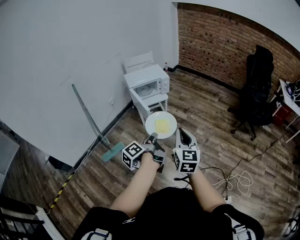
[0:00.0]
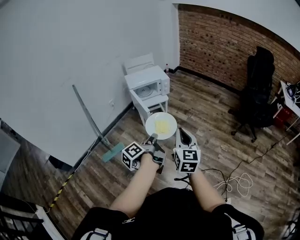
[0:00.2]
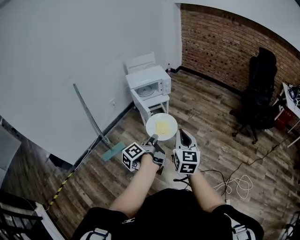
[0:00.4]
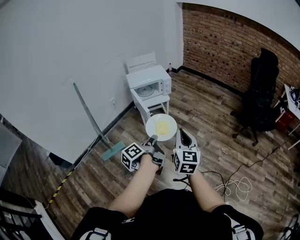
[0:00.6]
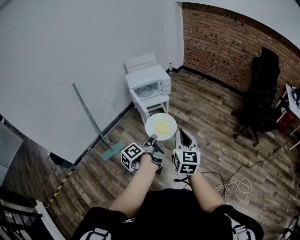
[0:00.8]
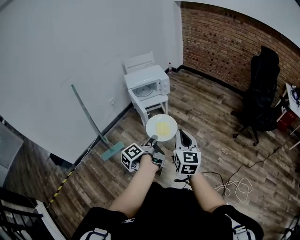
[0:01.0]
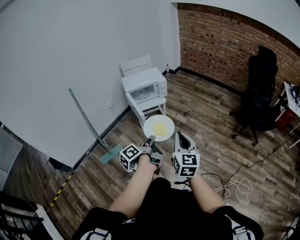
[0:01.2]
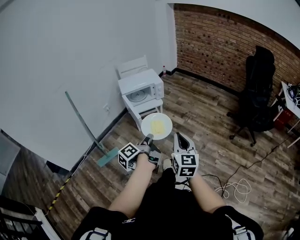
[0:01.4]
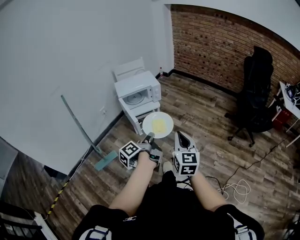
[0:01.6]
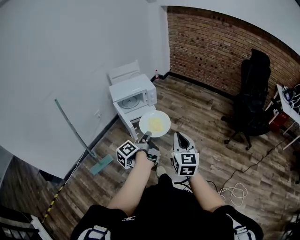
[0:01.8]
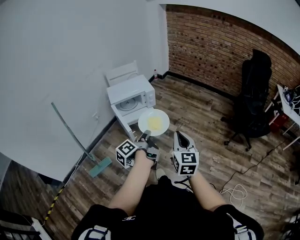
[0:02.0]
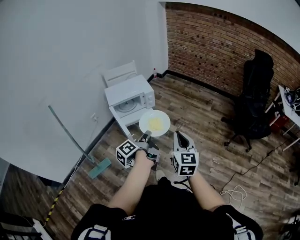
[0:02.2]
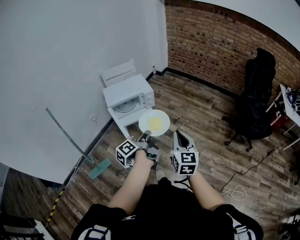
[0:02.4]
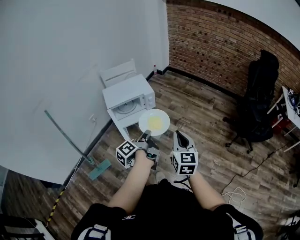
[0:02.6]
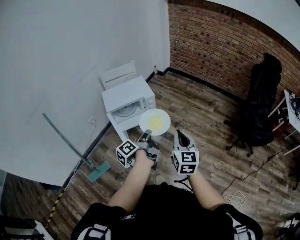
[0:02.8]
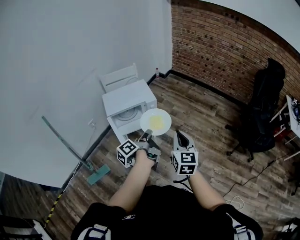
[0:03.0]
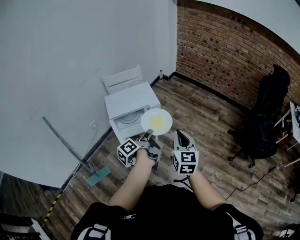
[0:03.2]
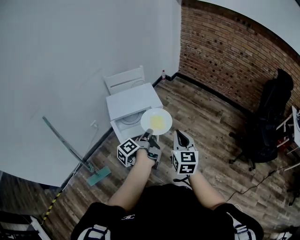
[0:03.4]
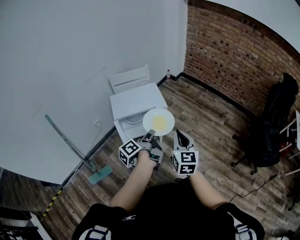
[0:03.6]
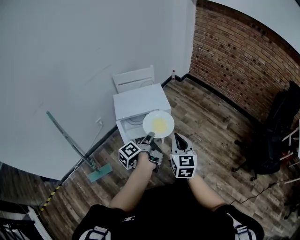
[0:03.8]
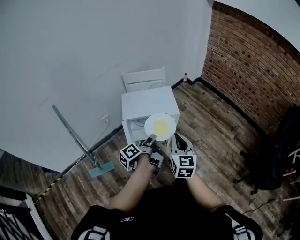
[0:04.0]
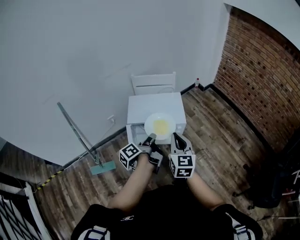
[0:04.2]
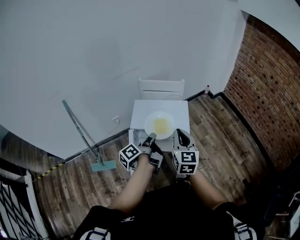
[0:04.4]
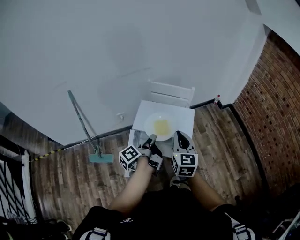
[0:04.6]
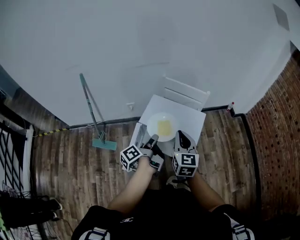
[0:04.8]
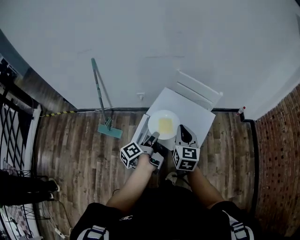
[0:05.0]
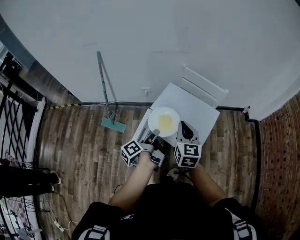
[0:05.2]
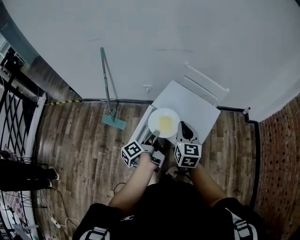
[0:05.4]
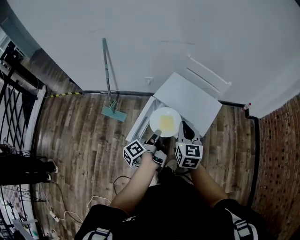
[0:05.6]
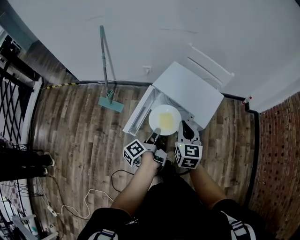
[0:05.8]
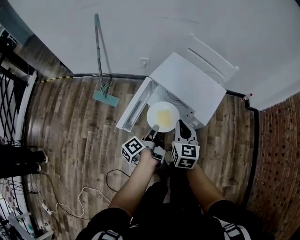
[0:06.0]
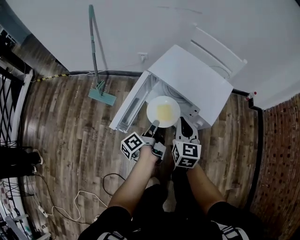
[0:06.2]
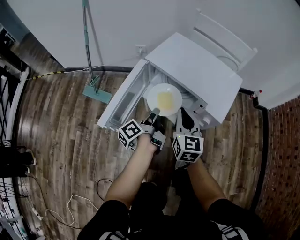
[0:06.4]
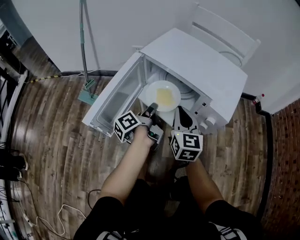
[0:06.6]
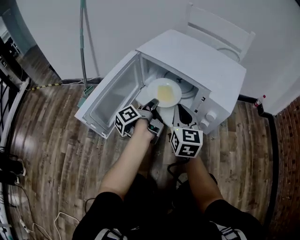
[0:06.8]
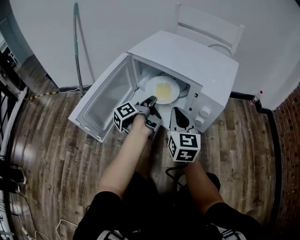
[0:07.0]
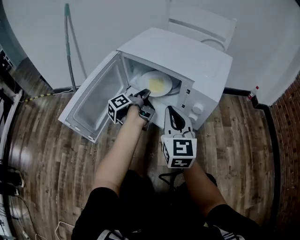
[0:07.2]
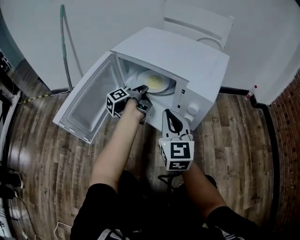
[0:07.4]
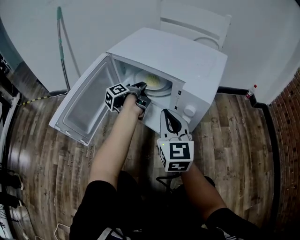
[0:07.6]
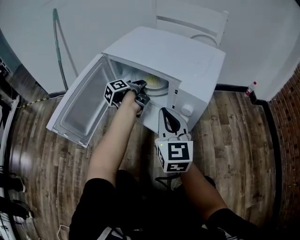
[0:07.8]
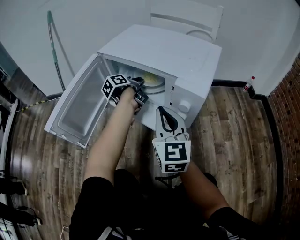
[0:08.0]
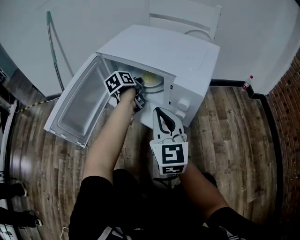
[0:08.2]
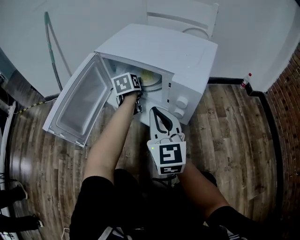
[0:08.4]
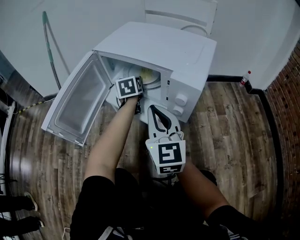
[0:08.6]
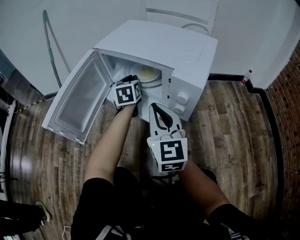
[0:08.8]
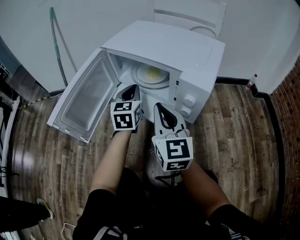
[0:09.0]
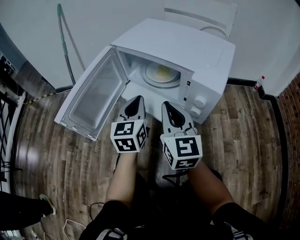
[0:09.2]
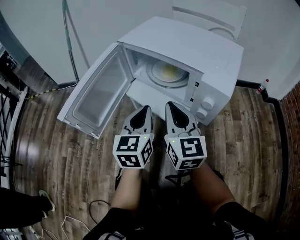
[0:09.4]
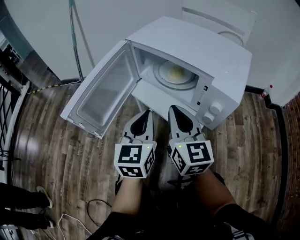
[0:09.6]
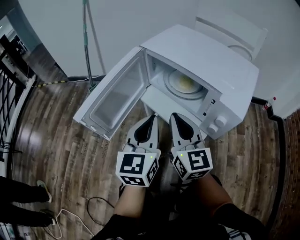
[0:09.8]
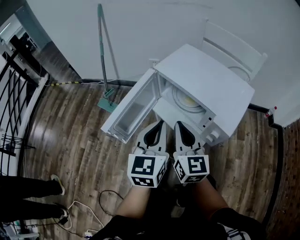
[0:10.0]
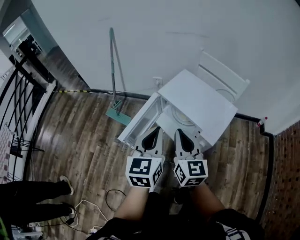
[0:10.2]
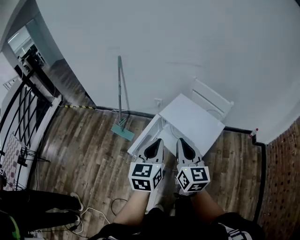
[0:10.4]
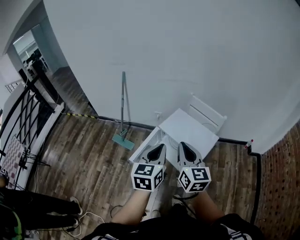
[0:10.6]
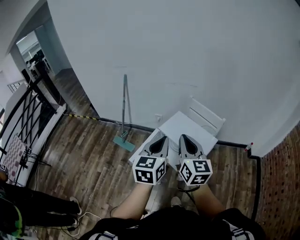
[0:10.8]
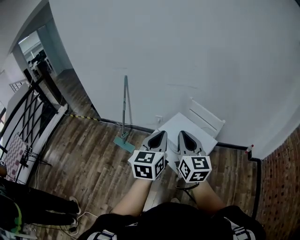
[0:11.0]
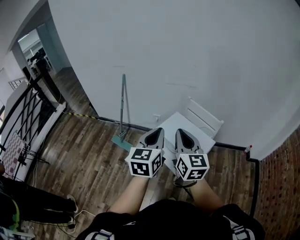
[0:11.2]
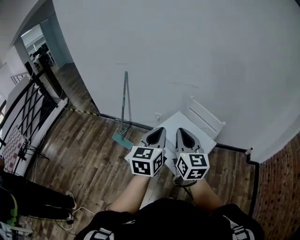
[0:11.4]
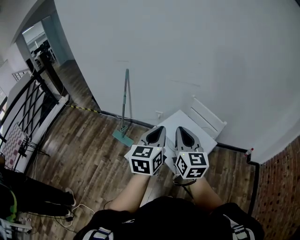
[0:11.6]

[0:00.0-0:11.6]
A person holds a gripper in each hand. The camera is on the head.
0:00.0 to 0:01.4: The right gripper shifts by approximately 10 cm.
0:01.4 to 0:02.8: The right gripper ends up about 30 cm from where it was.
0:02.8 to 0:04.4: The right gripper moves roughly 40 cm, and rotates approximately 30 degrees.
0:04.4 to 0:05.8: The right gripper is displaced downward by approximately 10 cm, and turns by approximately 30 degrees.
0:05.8 to 0:07.2: The right gripper moves downward, approximately 30 cm, and turns by some 20 degrees.
0:08.8 to 0:10.2: The right gripper shifts about 25 cm upward.
0:10.2 to 0:11.6: The right gripper goes approximately 25 cm upward.

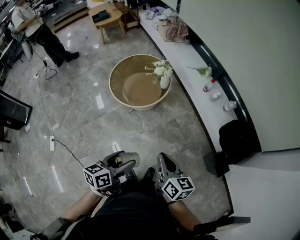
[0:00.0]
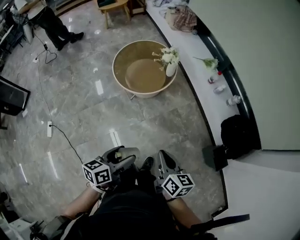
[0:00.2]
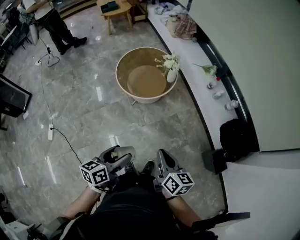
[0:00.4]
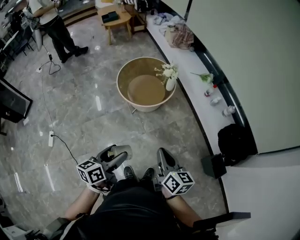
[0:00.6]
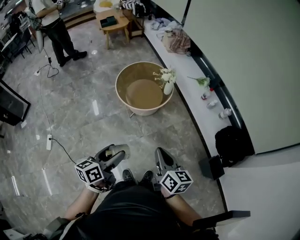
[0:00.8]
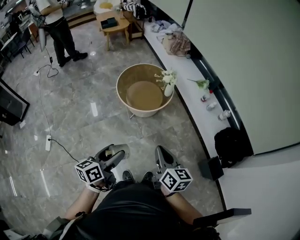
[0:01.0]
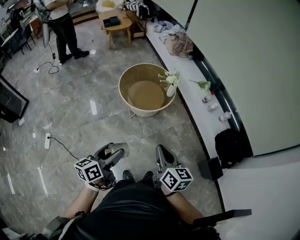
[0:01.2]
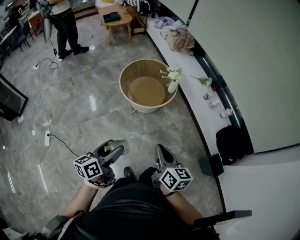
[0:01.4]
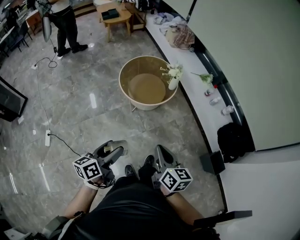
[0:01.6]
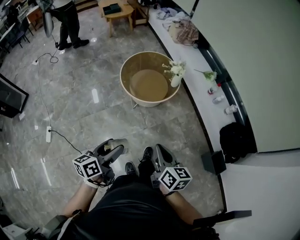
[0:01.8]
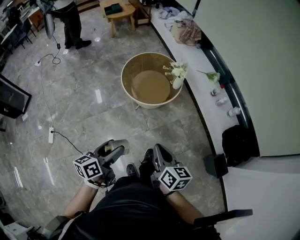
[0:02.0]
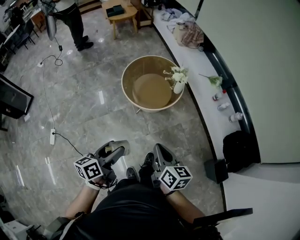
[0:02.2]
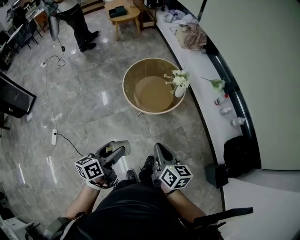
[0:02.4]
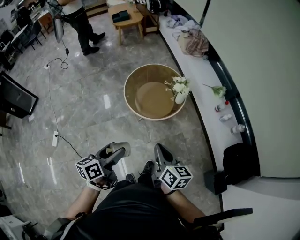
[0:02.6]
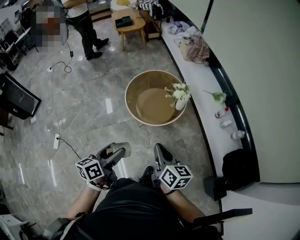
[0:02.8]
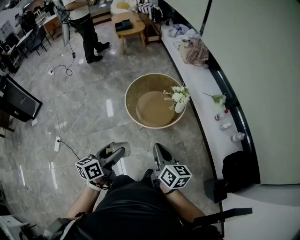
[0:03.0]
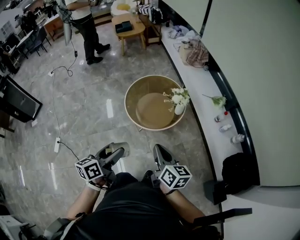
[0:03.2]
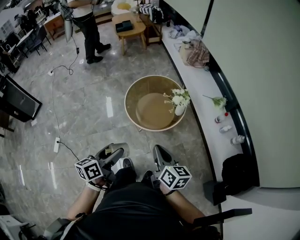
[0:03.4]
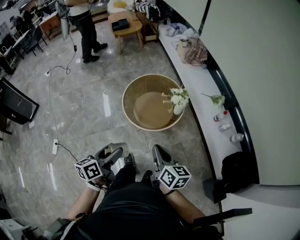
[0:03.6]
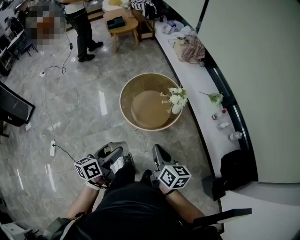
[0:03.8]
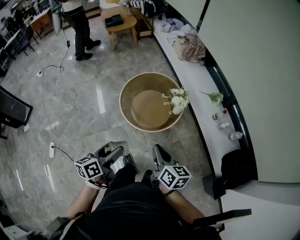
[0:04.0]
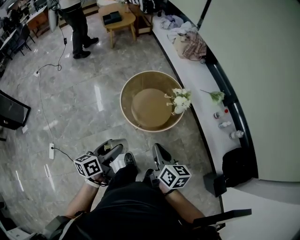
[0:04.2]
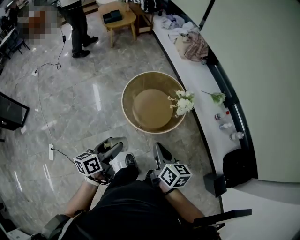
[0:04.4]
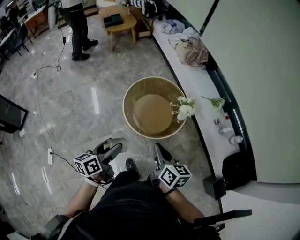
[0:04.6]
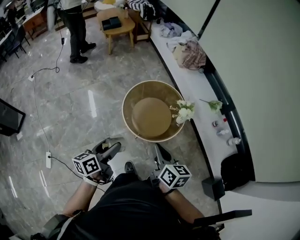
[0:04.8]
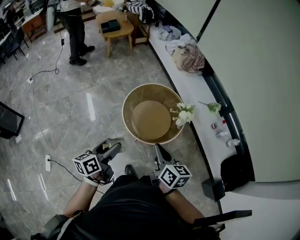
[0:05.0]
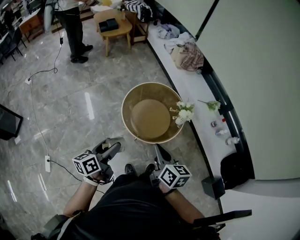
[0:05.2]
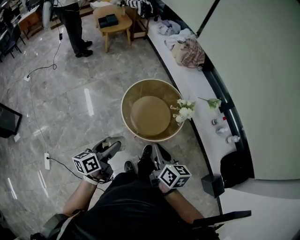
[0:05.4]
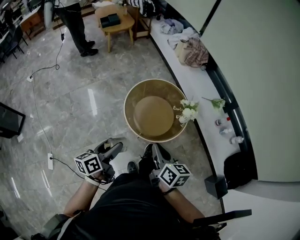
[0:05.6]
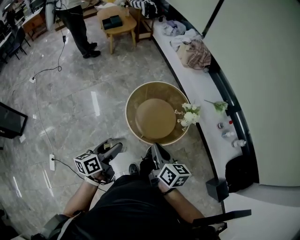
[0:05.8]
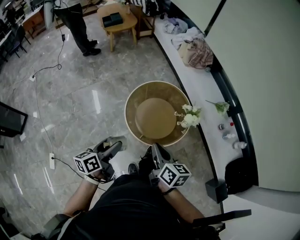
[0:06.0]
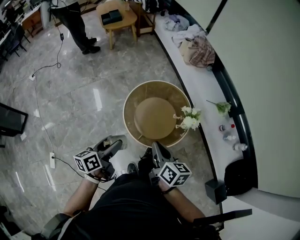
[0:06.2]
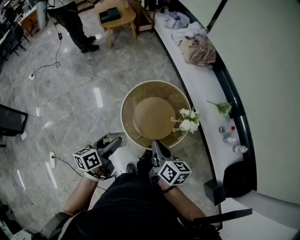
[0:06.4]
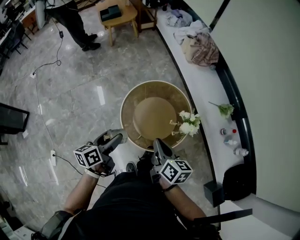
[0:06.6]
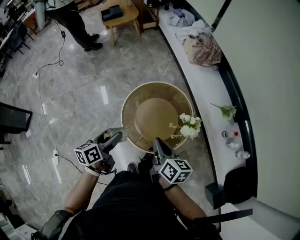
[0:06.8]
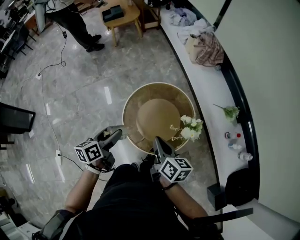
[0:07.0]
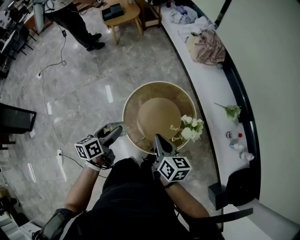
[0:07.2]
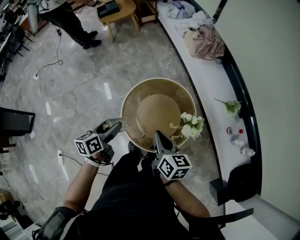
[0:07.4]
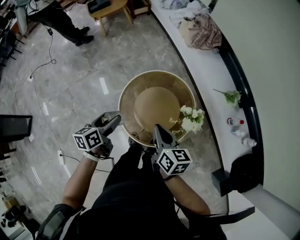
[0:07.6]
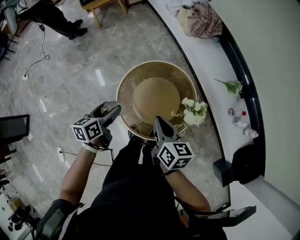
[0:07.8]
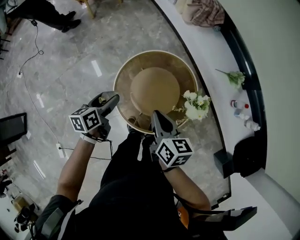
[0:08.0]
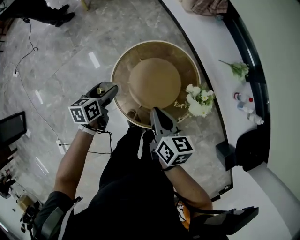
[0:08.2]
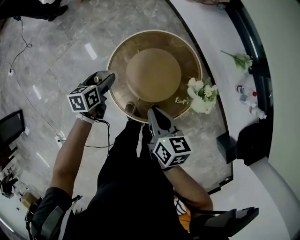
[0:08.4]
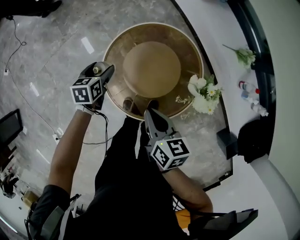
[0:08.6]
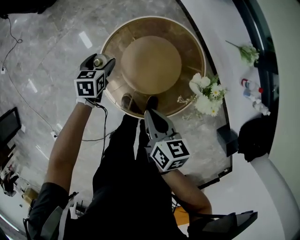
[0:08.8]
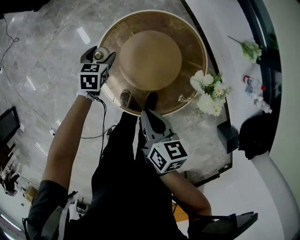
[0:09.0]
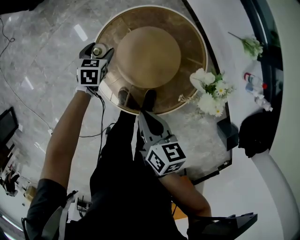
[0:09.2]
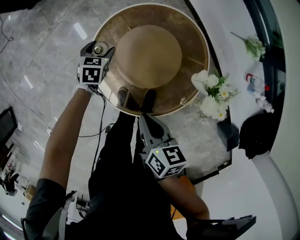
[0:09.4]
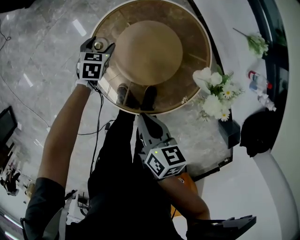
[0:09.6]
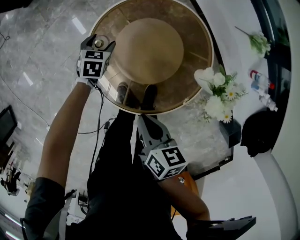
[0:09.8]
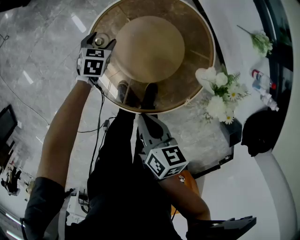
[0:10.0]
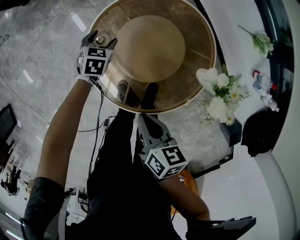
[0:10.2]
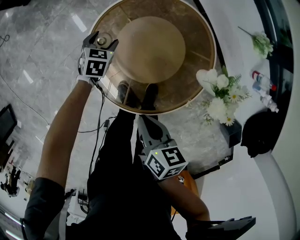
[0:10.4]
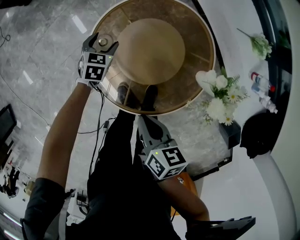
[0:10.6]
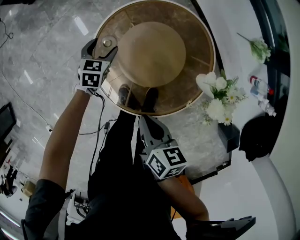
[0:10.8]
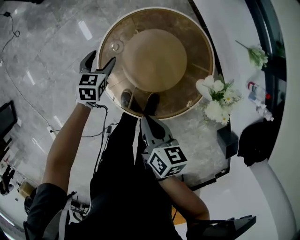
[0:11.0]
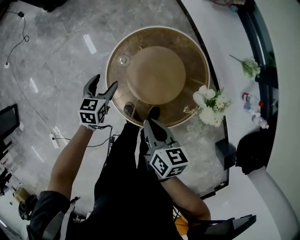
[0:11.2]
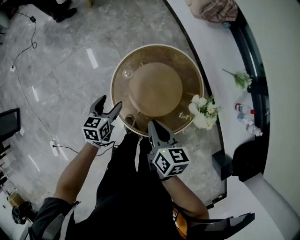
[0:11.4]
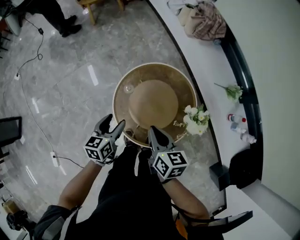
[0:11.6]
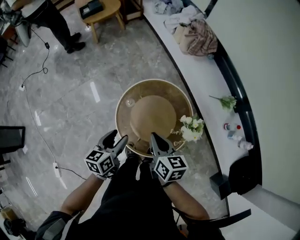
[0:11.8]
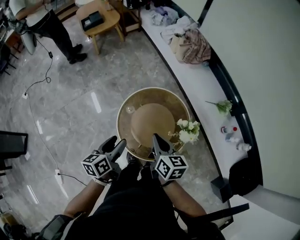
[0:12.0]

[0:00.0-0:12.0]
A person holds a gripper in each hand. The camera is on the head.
0:00.0 to 0:01.6: Both grippers travel together to the left, some 15 cm.
0:01.6 to 0:03.0: The right gripper travels forward by roughly 20 cm, while the left gripper heads forward and to the right, covering roughly 15 cm.
0:03.0 to 0:04.4: The two grippers go roughly 15 cm forward and to the left.
0:04.4 to 0:06.0: Both grippers move forward and to the left, approximately 15 cm.
0:06.0 to 0:07.6: Both grippers travel together forward, some 20 cm.
0:07.6 to 0:09.0: The right gripper goes about 20 cm downward. The left gripper heads downward and forward, covering about 35 cm, and swivels approximately 40 degrees.
0:09.0 to 0:10.4: The right gripper moves downward, about 5 cm. Meanwhile the left gripper shifts some 10 cm downward.
0:10.4 to 0:12.0: The right gripper goes roughly 25 cm upward, and changes its angle by approximately 30 degrees. The left gripper is displaced upward and backward by about 50 cm, and rotates around the line of its fingers by roughly 40 degrees, counterclockwise from behind.
